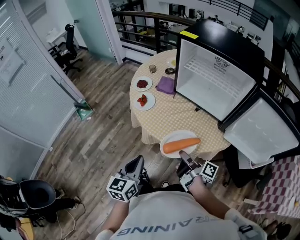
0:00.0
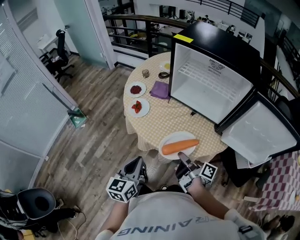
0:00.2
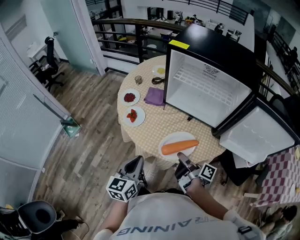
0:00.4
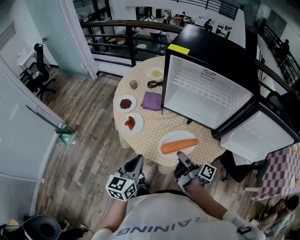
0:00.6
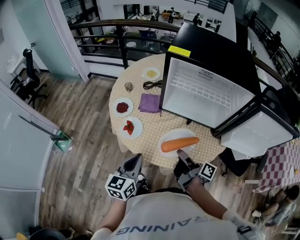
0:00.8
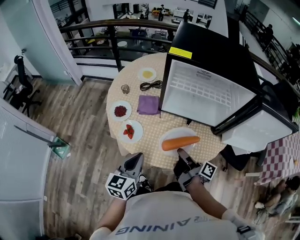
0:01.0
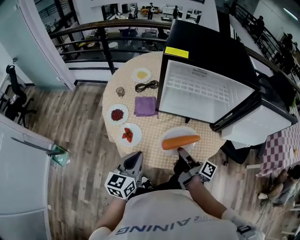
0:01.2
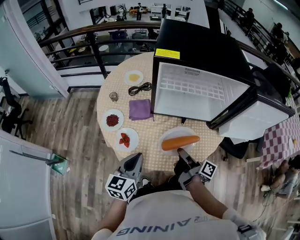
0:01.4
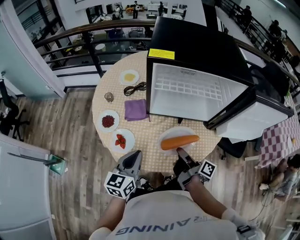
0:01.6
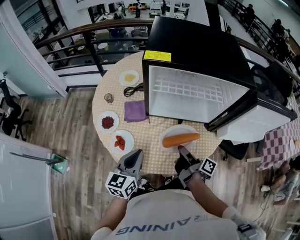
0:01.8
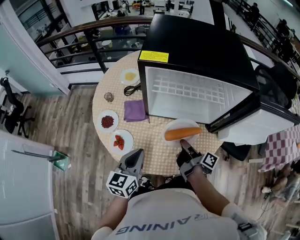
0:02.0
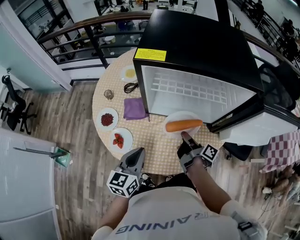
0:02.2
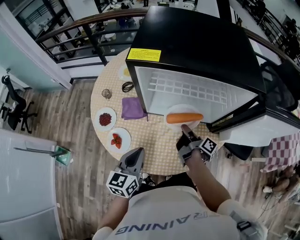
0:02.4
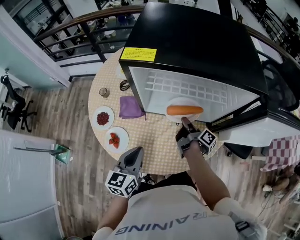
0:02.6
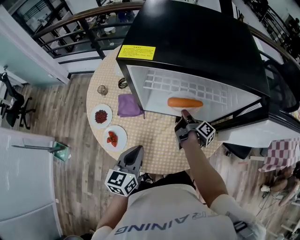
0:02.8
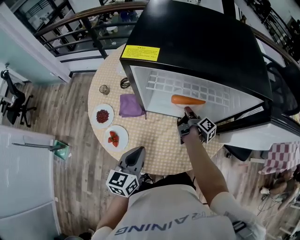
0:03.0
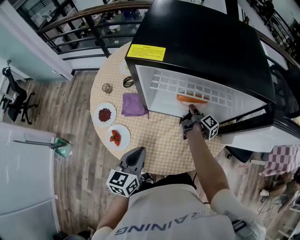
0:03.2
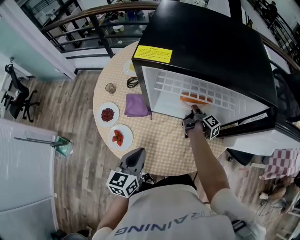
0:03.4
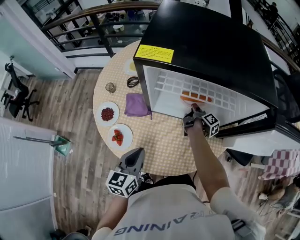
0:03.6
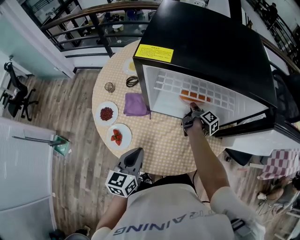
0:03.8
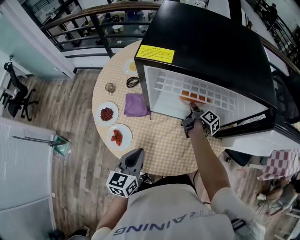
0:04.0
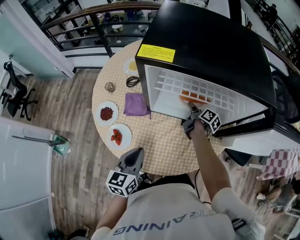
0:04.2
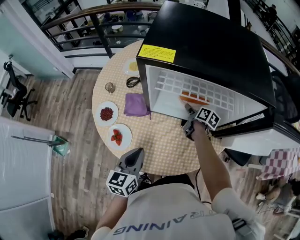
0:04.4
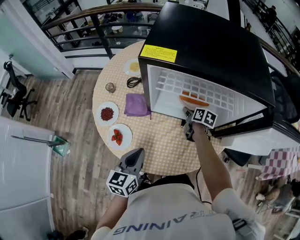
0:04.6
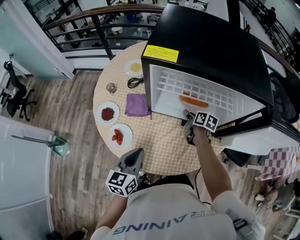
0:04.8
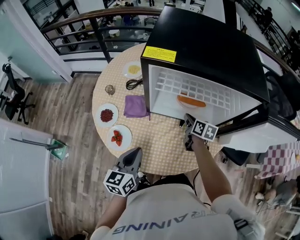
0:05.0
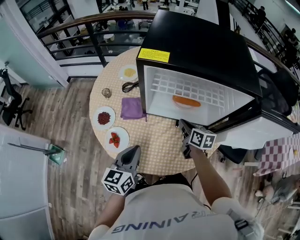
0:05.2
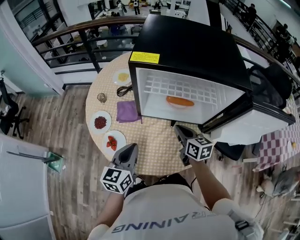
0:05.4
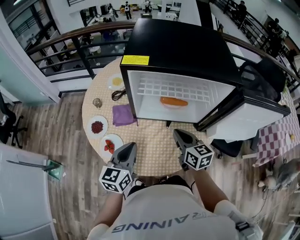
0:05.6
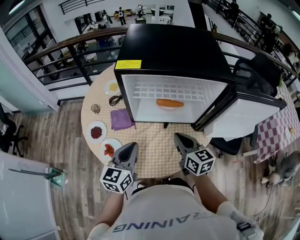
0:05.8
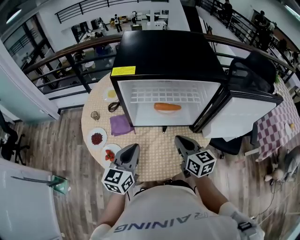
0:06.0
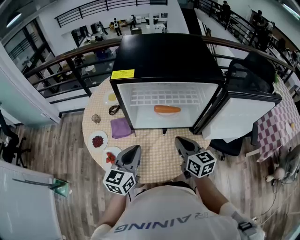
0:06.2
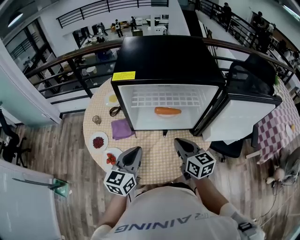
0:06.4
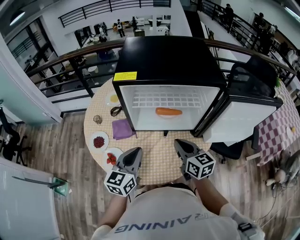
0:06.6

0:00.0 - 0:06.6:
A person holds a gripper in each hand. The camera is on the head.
0:00.0 - 0:01.6: The left gripper shifts by some 25 cm, and turns by roughly 30 degrees.
0:01.6 - 0:03.2: The left gripper ends up approximately 5 cm from where it was.
0:05.0 - 0:06.6: The left gripper moves upward, about 5 cm.

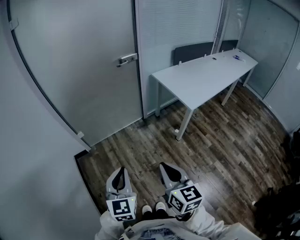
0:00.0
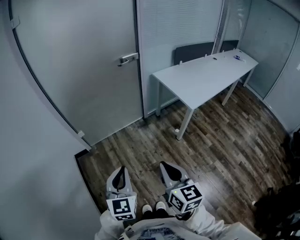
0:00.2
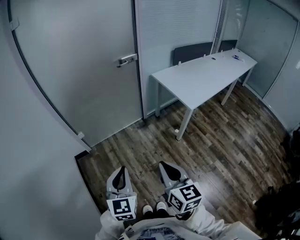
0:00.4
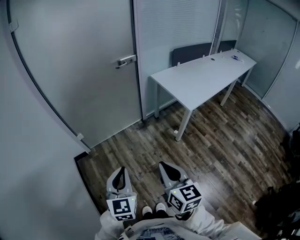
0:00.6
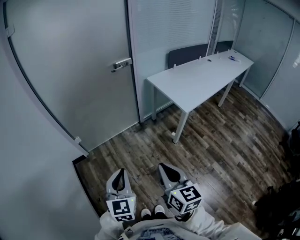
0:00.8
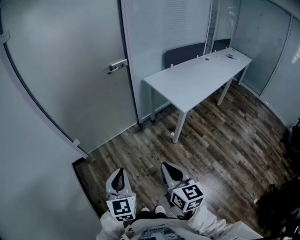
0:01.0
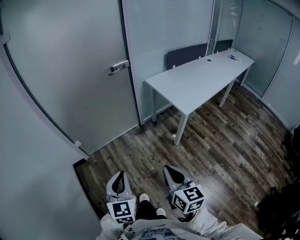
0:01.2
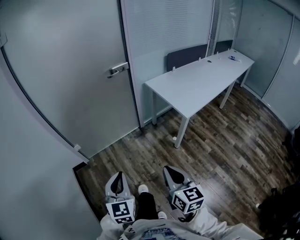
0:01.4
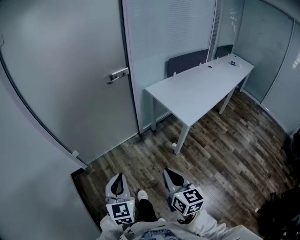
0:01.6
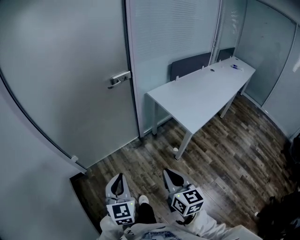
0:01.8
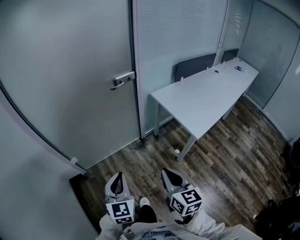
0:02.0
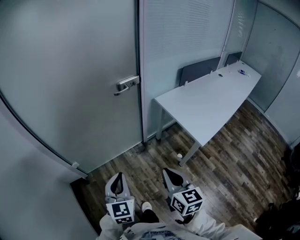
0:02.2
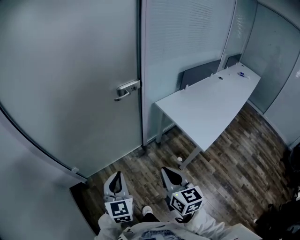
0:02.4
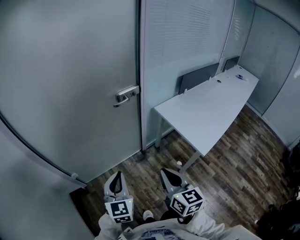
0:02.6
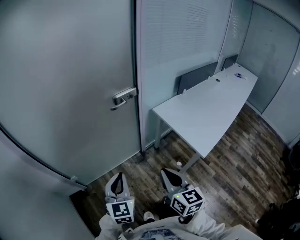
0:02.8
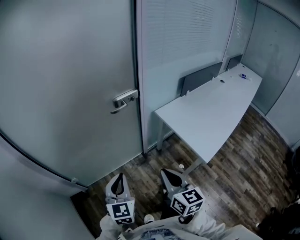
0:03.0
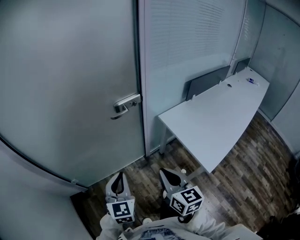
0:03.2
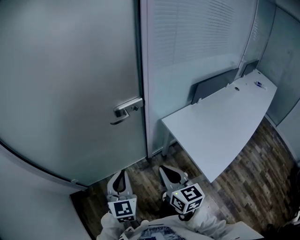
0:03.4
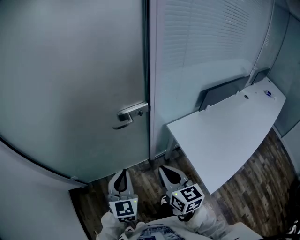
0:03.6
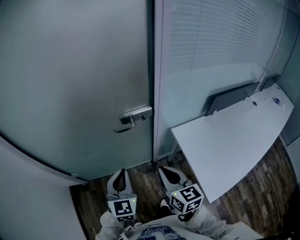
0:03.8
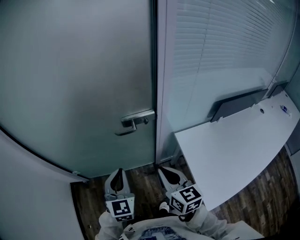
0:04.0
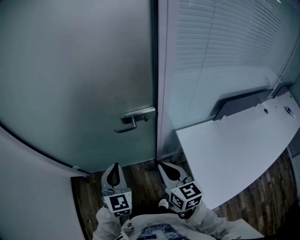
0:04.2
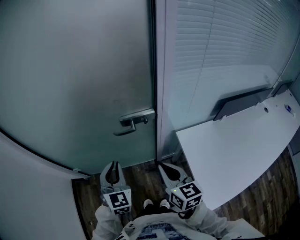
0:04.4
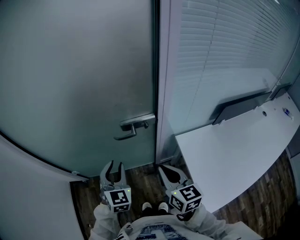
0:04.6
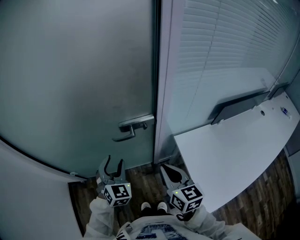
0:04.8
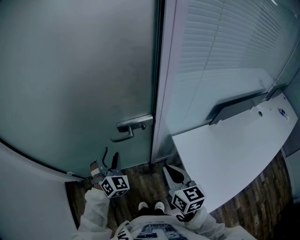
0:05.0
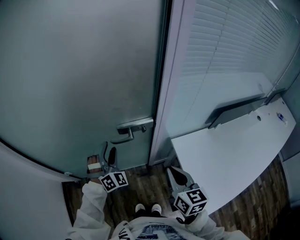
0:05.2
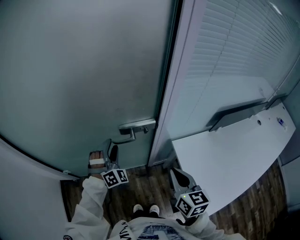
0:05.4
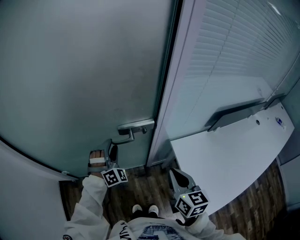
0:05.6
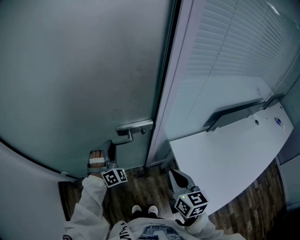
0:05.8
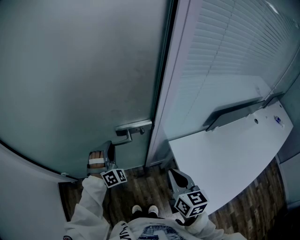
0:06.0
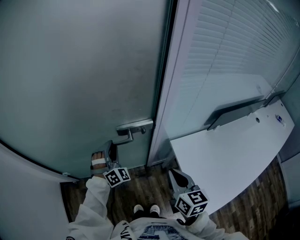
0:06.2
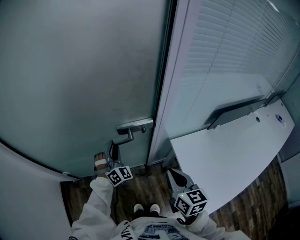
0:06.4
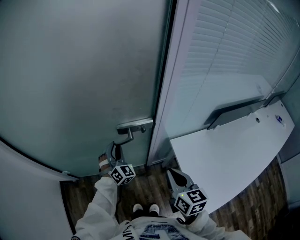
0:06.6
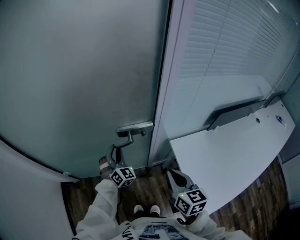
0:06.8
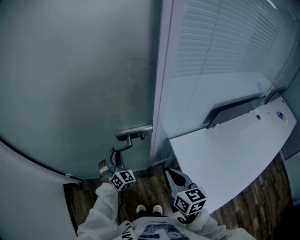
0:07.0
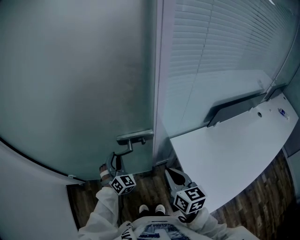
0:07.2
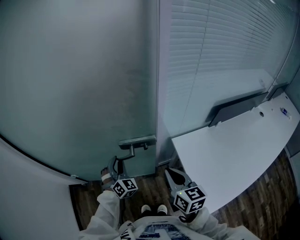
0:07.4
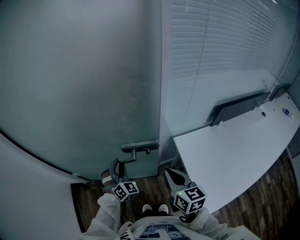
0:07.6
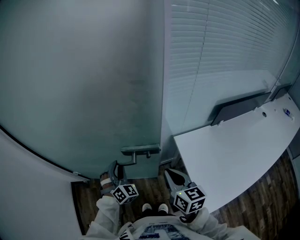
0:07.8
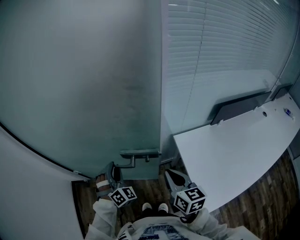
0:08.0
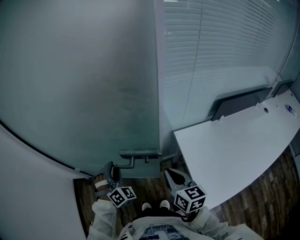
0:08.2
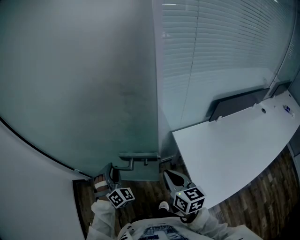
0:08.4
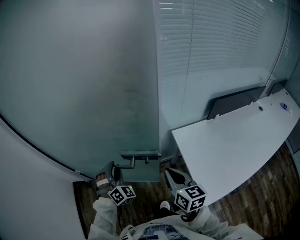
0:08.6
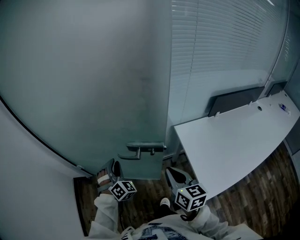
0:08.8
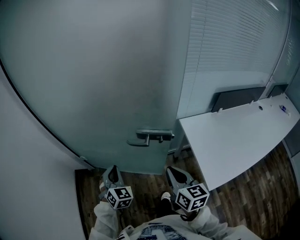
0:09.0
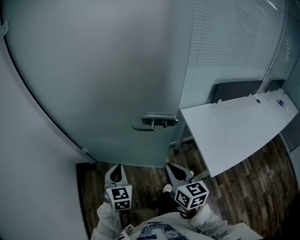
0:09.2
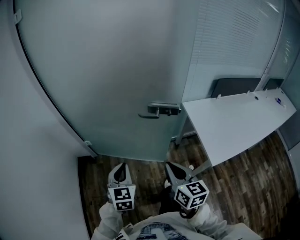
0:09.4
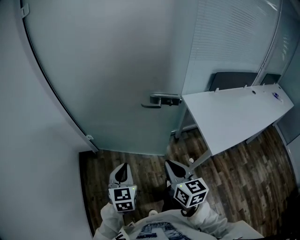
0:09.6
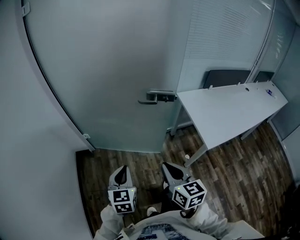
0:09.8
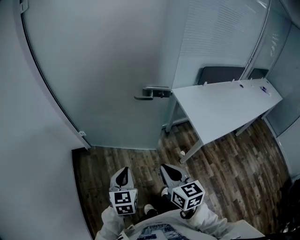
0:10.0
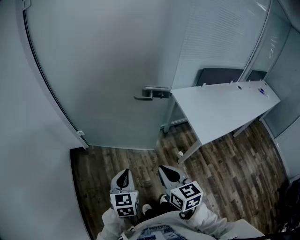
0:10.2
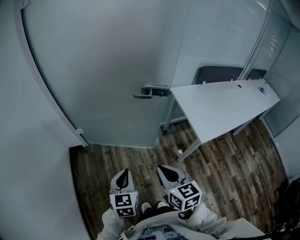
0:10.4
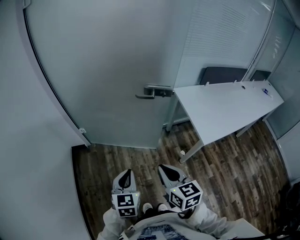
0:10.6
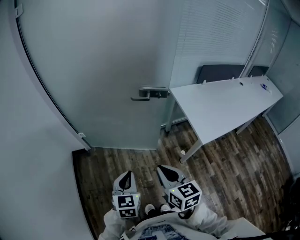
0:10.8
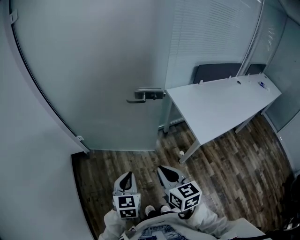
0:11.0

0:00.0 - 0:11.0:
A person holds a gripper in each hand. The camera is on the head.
0:00.0 - 0:01.6: The left gripper goes approximately 10 cm forward, while the right gripper heads forward and to the right, covering about 10 cm.
0:01.6 - 0:03.2: Both grippers move forward, about 35 cm.
0:03.2 - 0:04.8: The left gripper moves forward, some 20 cm, rotates about 30 degrees, and opens its fingers. Meanwhile the right gripper travels forward and to the right by approximately 25 cm.
0:04.8 - 0:06.2: The left gripper travels forward by about 10 cm, turns by roughly 30 degrees, and closes its fingers.
0:06.2 - 0:07.8: The left gripper travels backward by roughly 10 cm.
0:07.8 - 0:09.4: The two grippers go some 35 cm backward and to the left. The left gripper rolls counterclockwise, seen from behind, by about 50 degrees, and closes up.
0:09.4 - 0:11.0: The grippers both shift backward by approximately 15 cm.

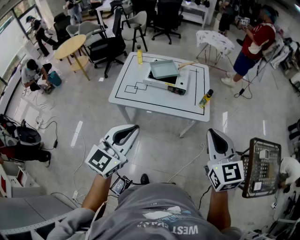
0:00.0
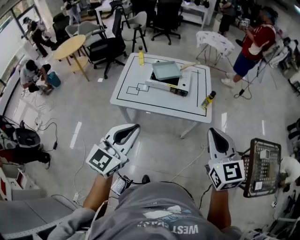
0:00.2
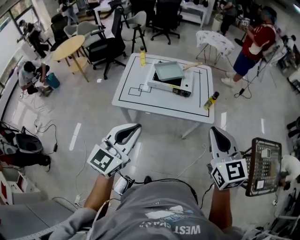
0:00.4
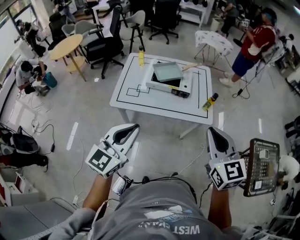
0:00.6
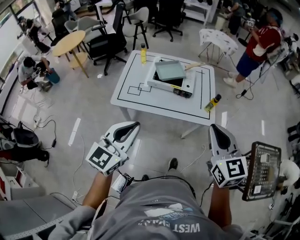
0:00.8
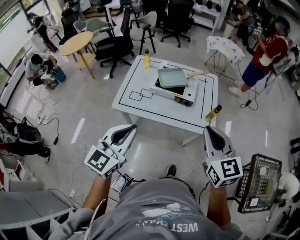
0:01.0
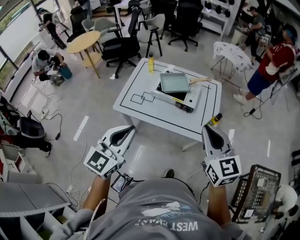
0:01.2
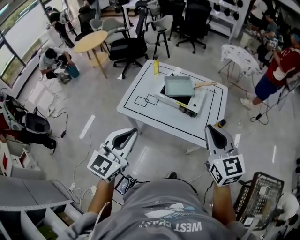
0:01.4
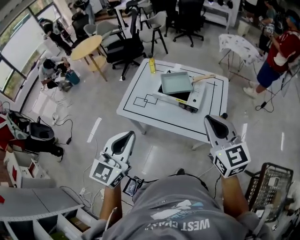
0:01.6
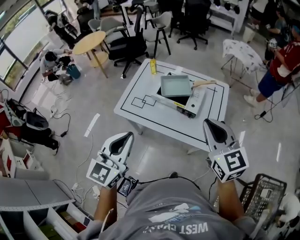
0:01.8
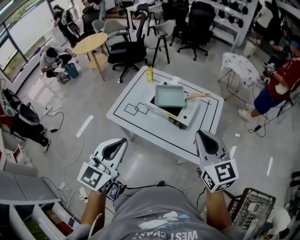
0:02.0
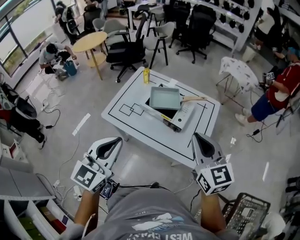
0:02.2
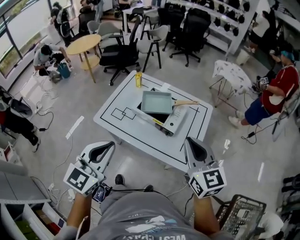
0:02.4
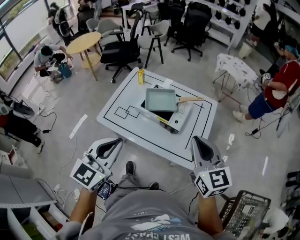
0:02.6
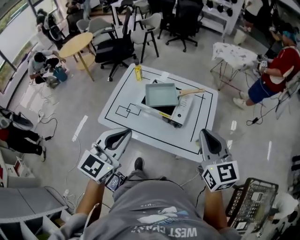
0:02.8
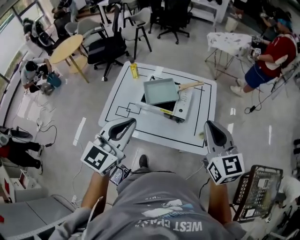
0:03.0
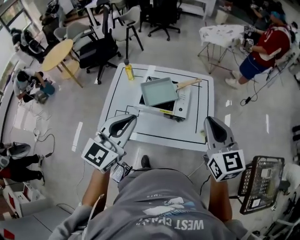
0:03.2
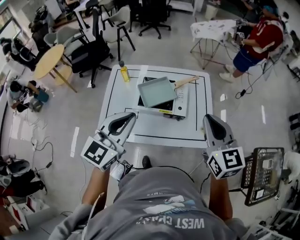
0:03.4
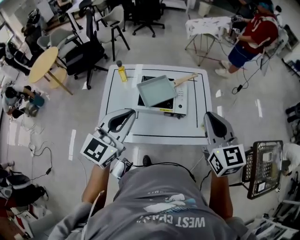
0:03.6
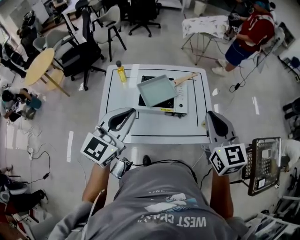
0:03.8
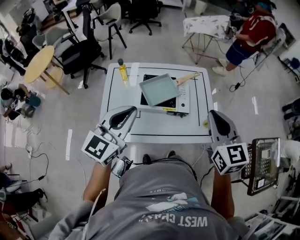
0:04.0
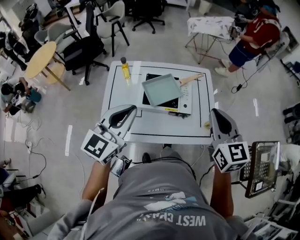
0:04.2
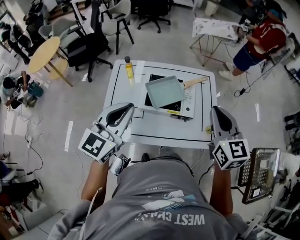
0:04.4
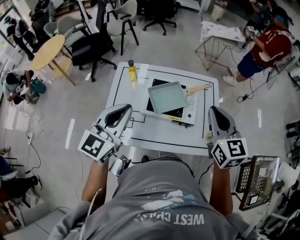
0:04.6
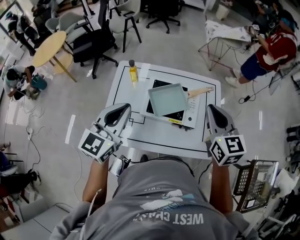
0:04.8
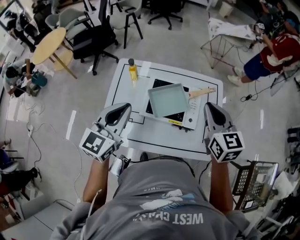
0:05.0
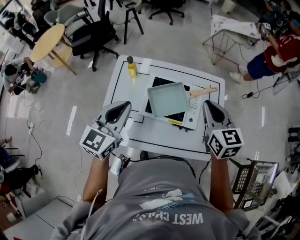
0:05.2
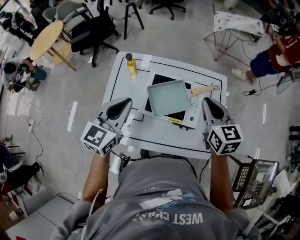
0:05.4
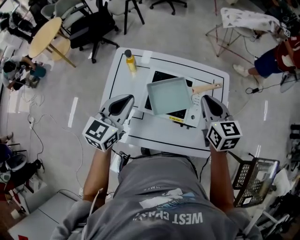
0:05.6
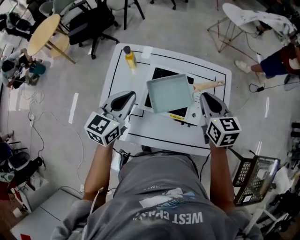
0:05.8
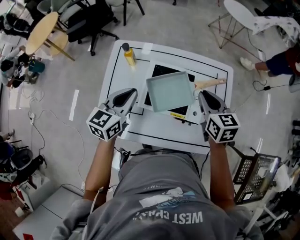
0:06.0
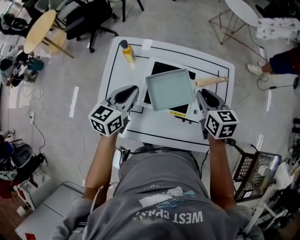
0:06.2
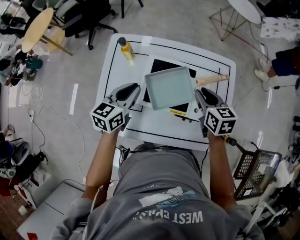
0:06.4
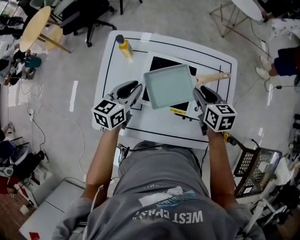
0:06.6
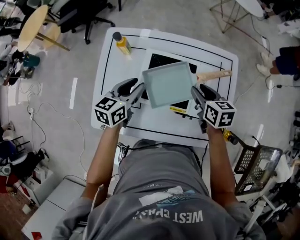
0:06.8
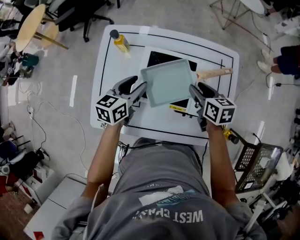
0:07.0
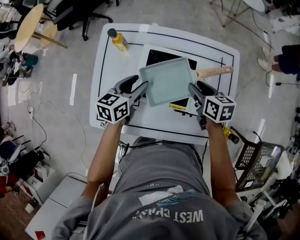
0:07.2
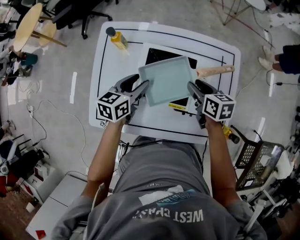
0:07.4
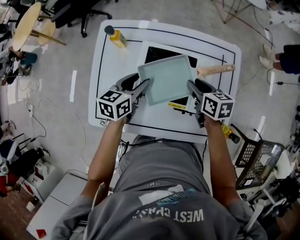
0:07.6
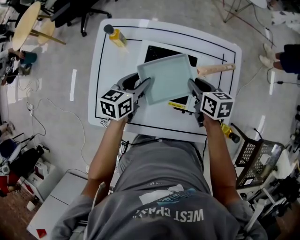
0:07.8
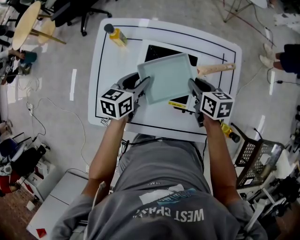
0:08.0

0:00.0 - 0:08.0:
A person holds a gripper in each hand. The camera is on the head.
0:00.0 - 0:01.6: The left gripper shifts roughly 10 cm forward, and changes its angle by about 20 degrees; the right gripper shifts some 20 cm forward, and changes its angle by some 20 degrees.
0:01.6 - 0:03.2: The right gripper moves forward, about 10 cm, while the left gripper travels forward by some 20 cm, and rotates roughly 20 degrees.
0:03.2 - 0:04.8: The left gripper shifts about 15 cm to the left and forward, while the right gripper moves forward and to the left, approximately 15 cm.
0:04.8 - 0:06.4: The two grippers go approximately 25 cm downward and forward. The left gripper rotates some 30 degrees. The right gripper turns by roughly 30 degrees, and opens.
0:06.4 - 0:08.0: The grippers both shift downward by roughly 10 cm. The left gripper opens.
